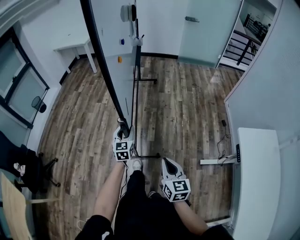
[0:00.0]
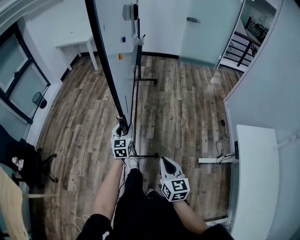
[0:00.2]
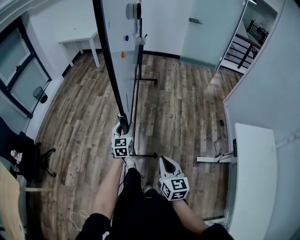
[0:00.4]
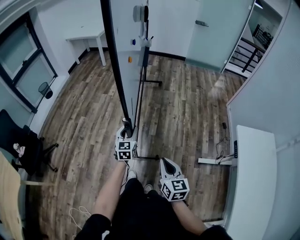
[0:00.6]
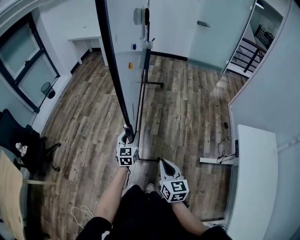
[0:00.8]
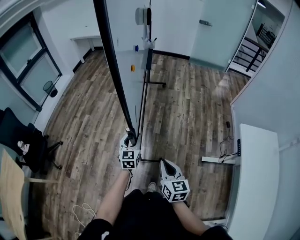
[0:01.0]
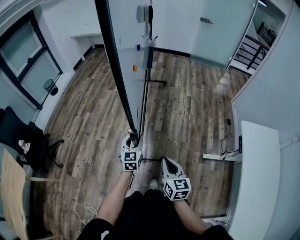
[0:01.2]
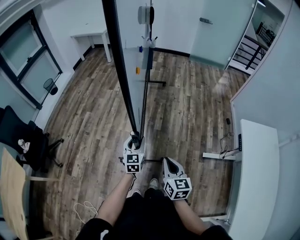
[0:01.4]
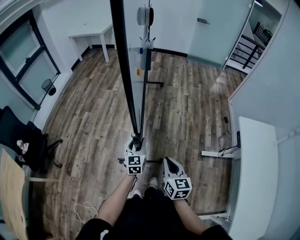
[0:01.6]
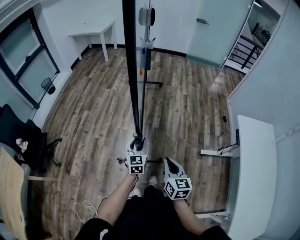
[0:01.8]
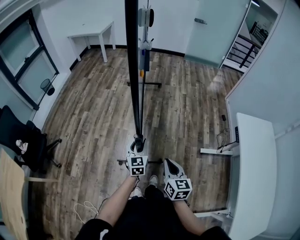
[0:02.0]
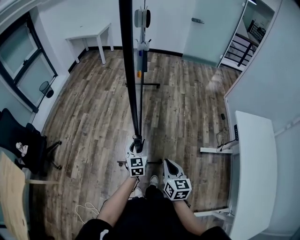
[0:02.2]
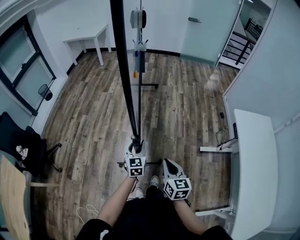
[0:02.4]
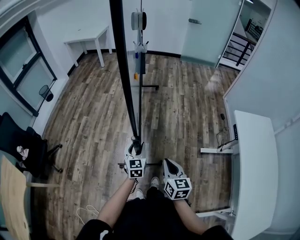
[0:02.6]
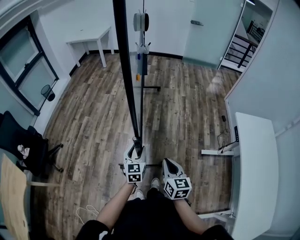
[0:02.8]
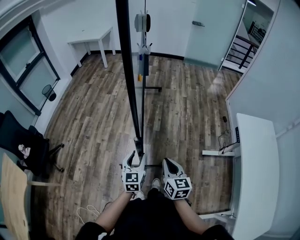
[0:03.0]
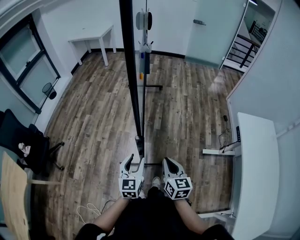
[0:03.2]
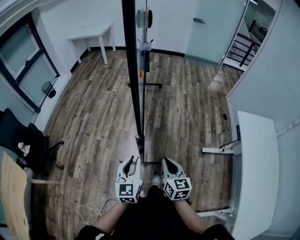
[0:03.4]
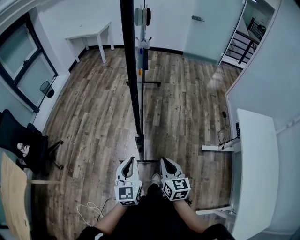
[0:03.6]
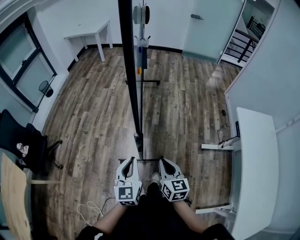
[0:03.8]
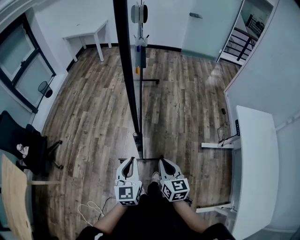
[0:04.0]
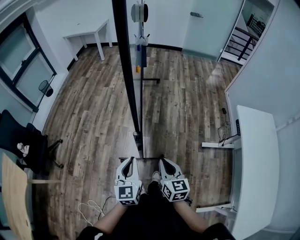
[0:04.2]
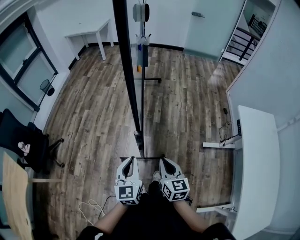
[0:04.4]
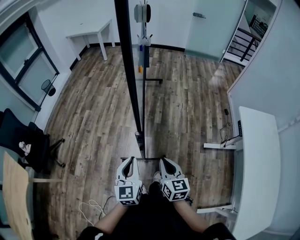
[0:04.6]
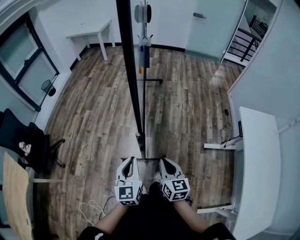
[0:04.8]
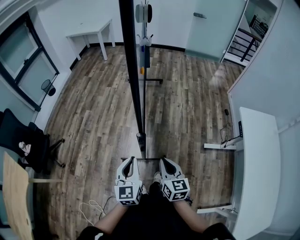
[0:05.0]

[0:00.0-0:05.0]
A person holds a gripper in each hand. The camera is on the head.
0:00.0 to 0:01.6: The left gripper heads backward, covering roughly 25 cm. Meanwhile the right gripper travels backward and to the left by some 20 cm.
0:01.6 to 0:03.4: The right gripper shifts by some 5 cm. The left gripper goes approximately 20 cm backward and upward.
0:03.4 to 0:05.0: The left gripper closes up.

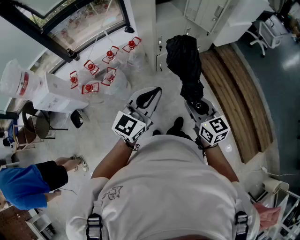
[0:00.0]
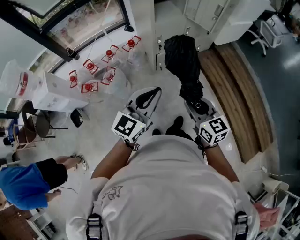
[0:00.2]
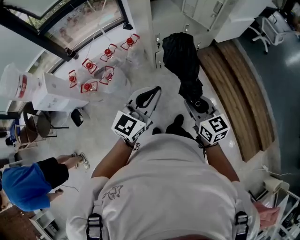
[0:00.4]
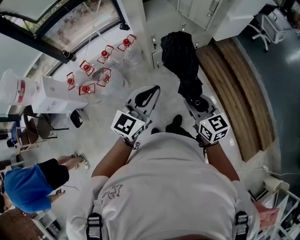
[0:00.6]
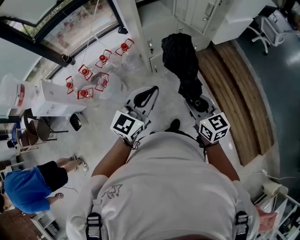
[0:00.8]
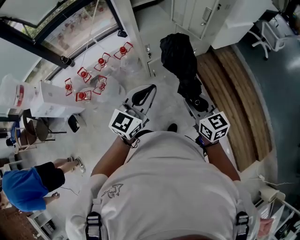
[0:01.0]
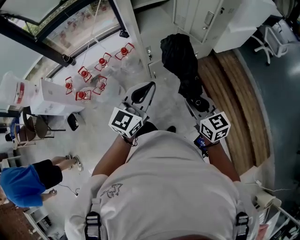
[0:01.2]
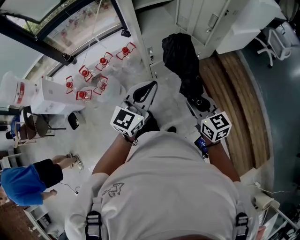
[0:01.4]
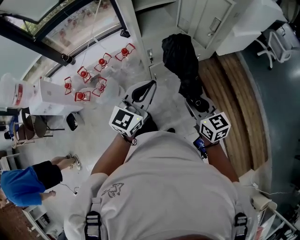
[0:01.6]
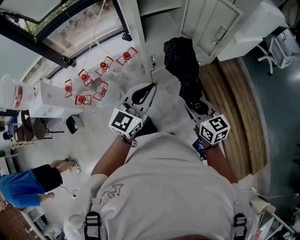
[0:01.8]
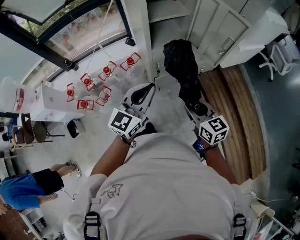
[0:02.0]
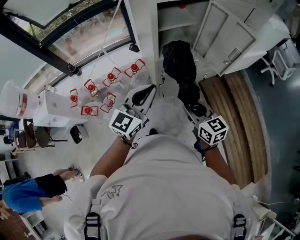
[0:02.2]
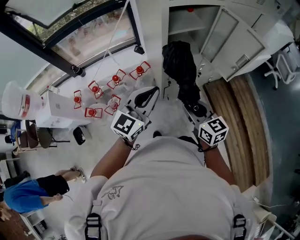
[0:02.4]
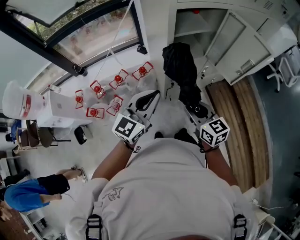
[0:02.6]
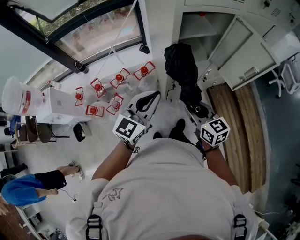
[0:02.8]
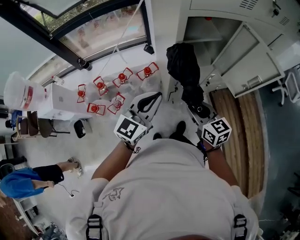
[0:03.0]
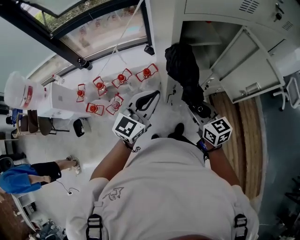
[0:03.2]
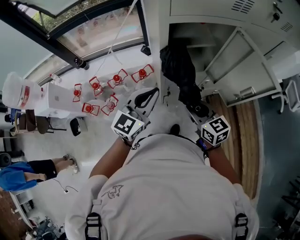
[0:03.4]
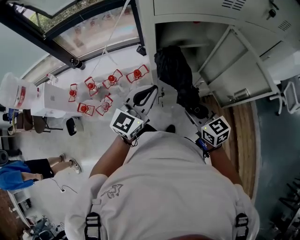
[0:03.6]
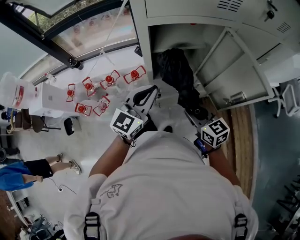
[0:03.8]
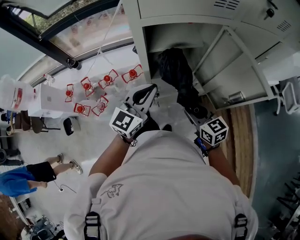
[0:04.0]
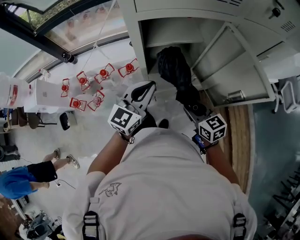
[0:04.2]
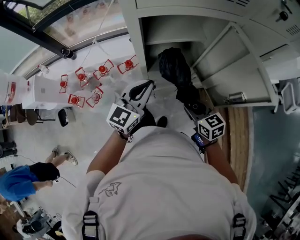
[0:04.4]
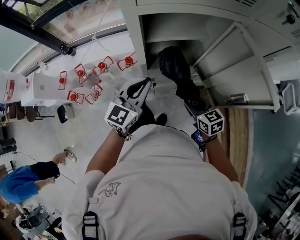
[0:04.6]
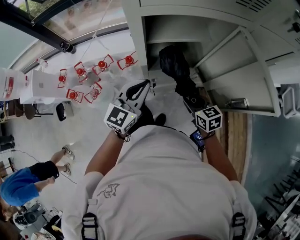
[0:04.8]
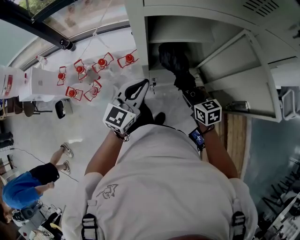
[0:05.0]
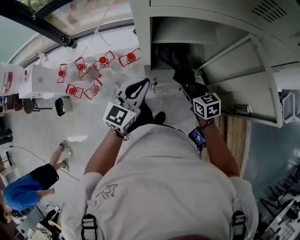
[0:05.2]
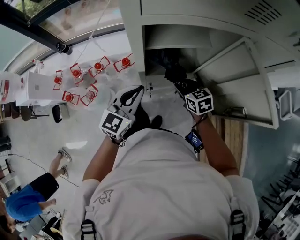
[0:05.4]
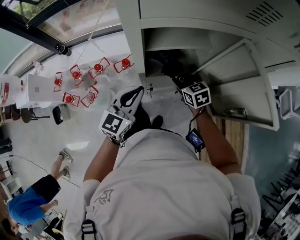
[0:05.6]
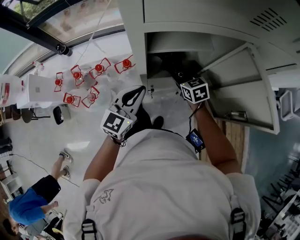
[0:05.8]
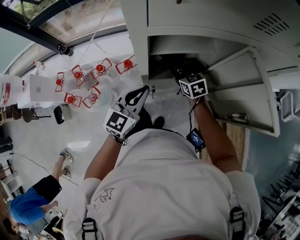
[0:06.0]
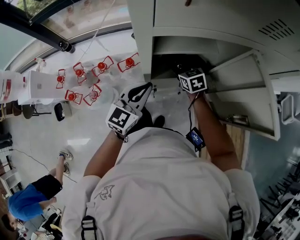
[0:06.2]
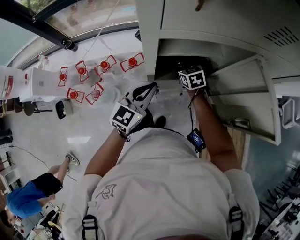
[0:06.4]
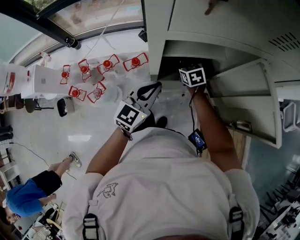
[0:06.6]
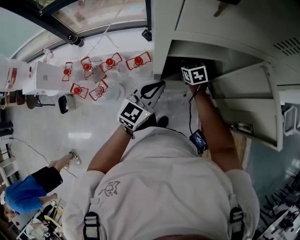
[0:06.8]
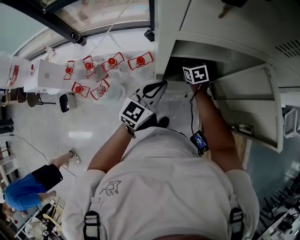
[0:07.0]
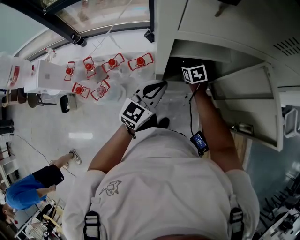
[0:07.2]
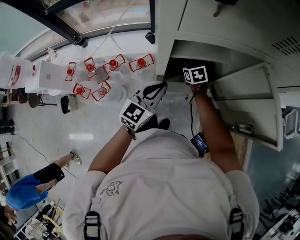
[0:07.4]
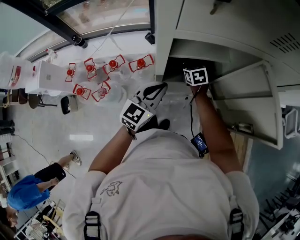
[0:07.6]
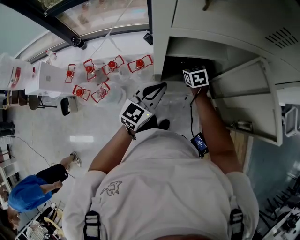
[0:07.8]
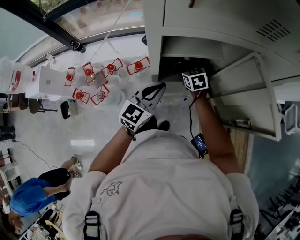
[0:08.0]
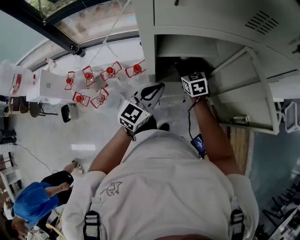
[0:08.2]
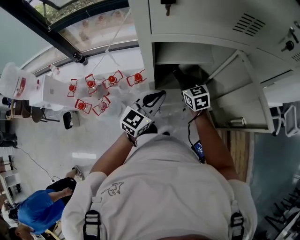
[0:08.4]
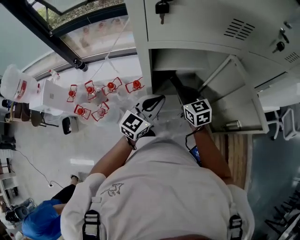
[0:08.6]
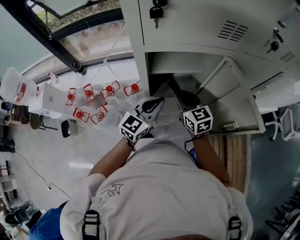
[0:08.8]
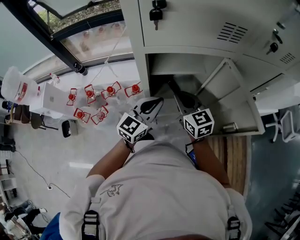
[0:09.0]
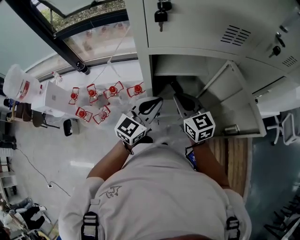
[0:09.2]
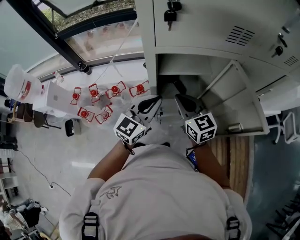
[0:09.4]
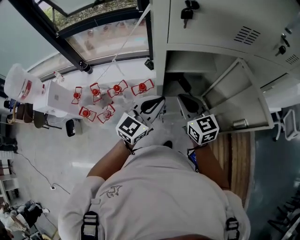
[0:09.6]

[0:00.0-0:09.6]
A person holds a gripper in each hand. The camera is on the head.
0:00.0 to 0:01.6: The grippers both shift forward and to the right by roughly 25 cm.
0:01.6 to 0:03.2: The two grippers go about 25 cm forward and to the left.
0:03.2 to 0:04.8: The left gripper shifts about 15 cm to the right, forward and downward. The right gripper is displaced to the right, downward and forward by some 20 cm.
0:04.8 to 0:06.4: The right gripper moves forward, approximately 25 cm, while the left gripper heads forward, covering some 5 cm.
0:06.4 to 0:08.0: The grippers make only small movements.
0:08.0 to 0:09.6: The left gripper moves upward, approximately 10 cm. The right gripper travels upward and backward by roughly 25 cm, swivels approximately 30 degrees, and closes up.

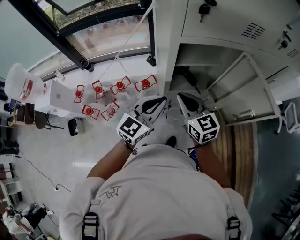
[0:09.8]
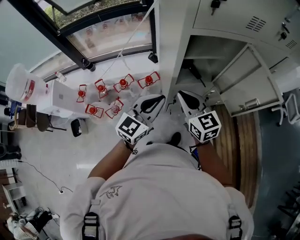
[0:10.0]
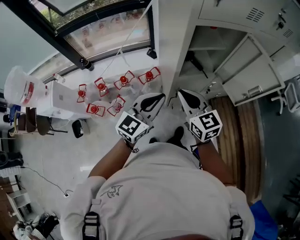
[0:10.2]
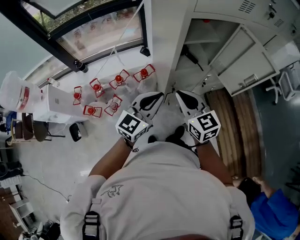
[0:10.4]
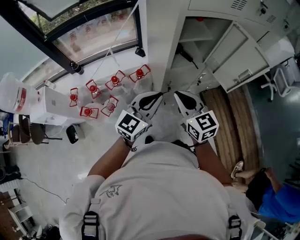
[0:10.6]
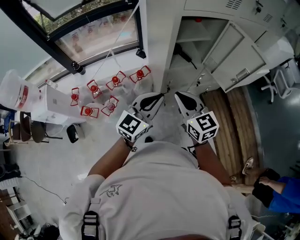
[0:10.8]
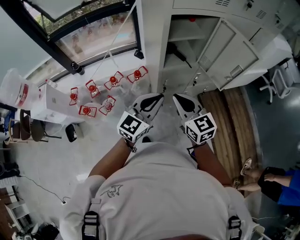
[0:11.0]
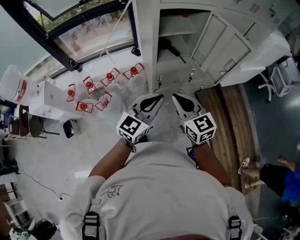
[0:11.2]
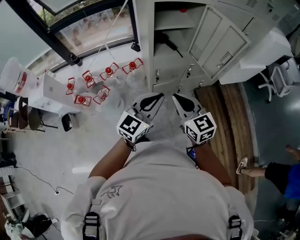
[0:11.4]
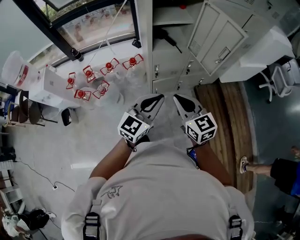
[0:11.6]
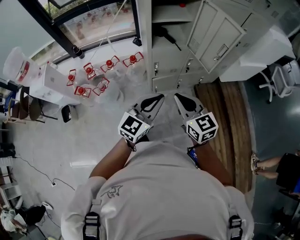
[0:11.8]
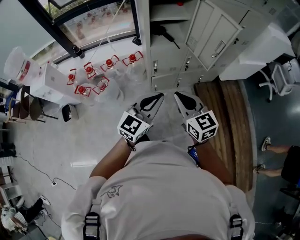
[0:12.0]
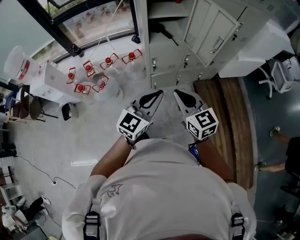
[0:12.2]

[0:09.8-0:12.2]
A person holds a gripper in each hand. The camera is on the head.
0:09.8 to 0:11.0: Both grippers travel together backward, approximately 20 cm.
0:11.0 to 0:12.2: Both grippers move backward and to the right, approximately 20 cm.

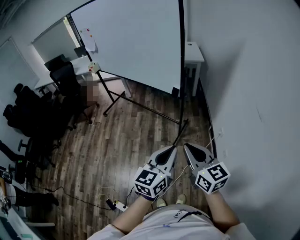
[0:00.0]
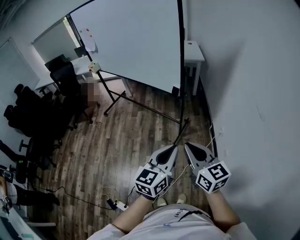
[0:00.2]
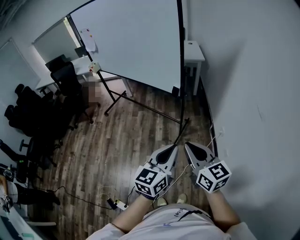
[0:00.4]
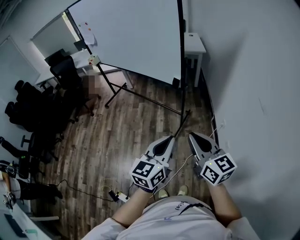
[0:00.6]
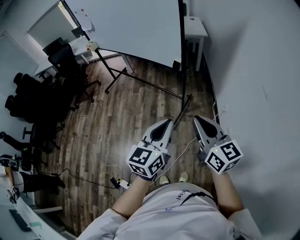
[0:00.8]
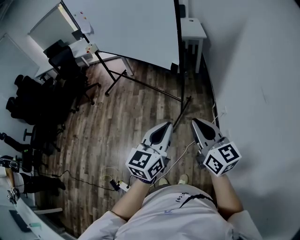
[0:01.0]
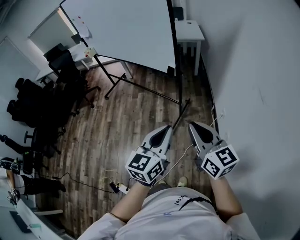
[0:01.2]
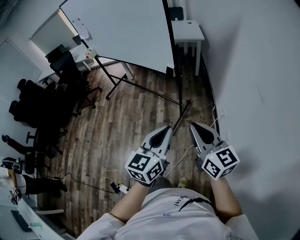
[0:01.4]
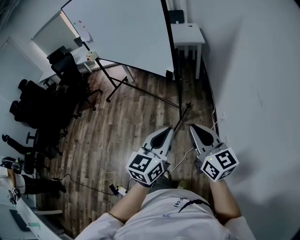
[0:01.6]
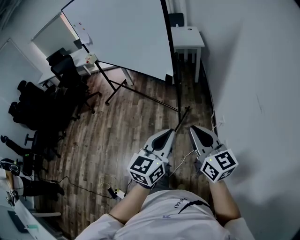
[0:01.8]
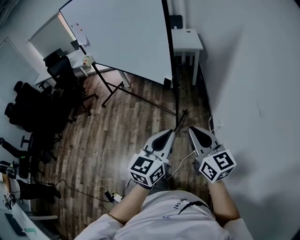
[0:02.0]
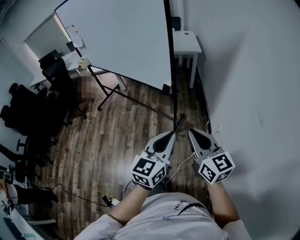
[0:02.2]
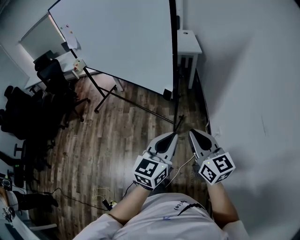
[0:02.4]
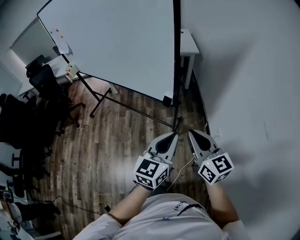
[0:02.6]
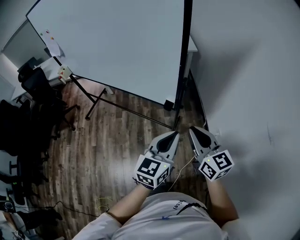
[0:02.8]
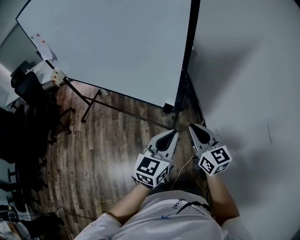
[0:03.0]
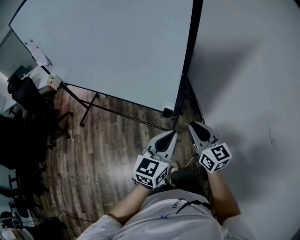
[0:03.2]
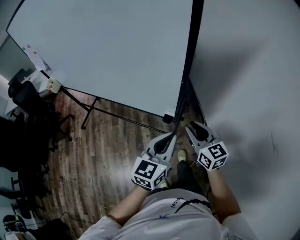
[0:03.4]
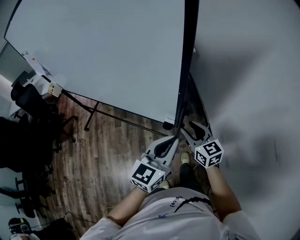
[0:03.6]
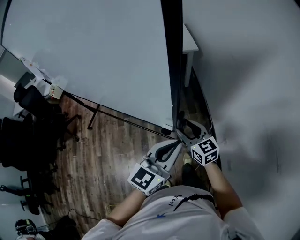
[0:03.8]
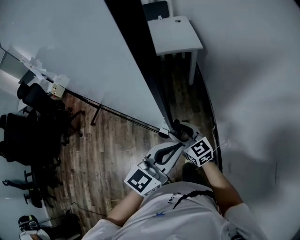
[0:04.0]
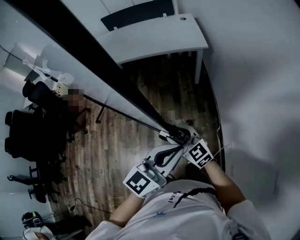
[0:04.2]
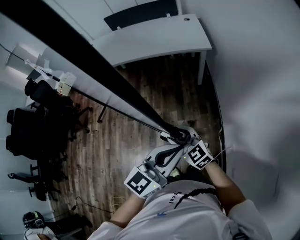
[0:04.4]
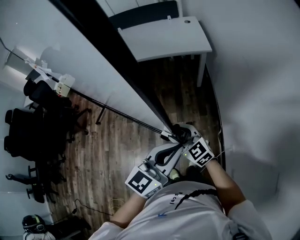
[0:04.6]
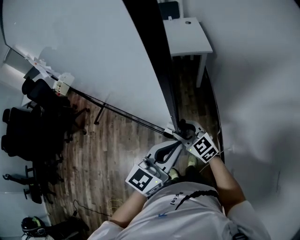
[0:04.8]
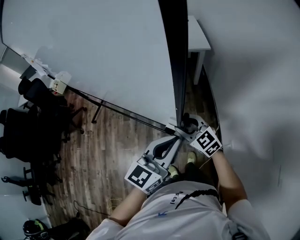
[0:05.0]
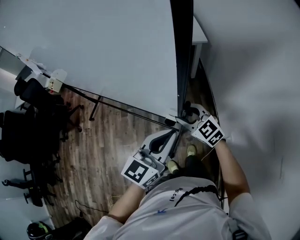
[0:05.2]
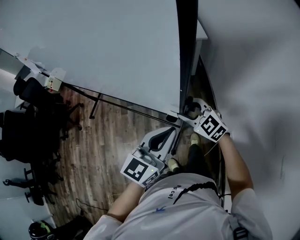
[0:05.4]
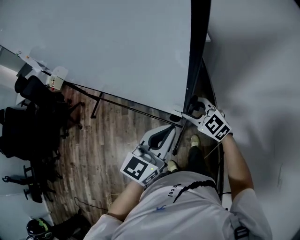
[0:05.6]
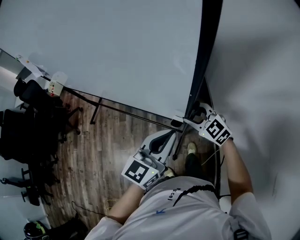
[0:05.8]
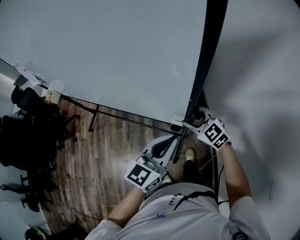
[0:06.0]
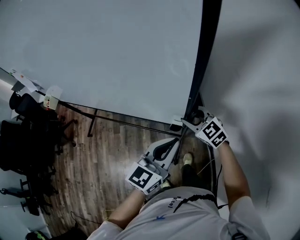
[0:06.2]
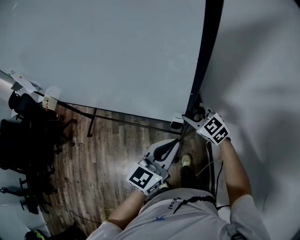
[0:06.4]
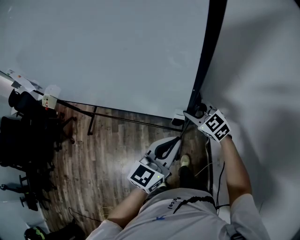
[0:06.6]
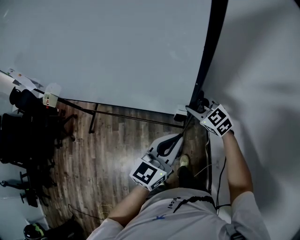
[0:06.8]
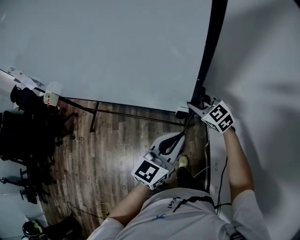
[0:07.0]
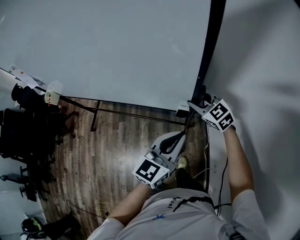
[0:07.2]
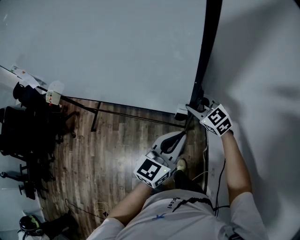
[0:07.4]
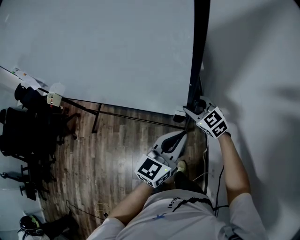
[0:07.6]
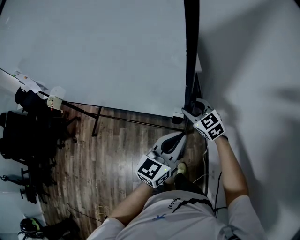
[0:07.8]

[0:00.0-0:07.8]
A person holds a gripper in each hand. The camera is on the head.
0:00.0 to 0:01.6: The grippers both shift to the right by approximately 10 cm.
0:01.6 to 0:03.2: Both grippers travel together forward, approximately 35 cm.
0:03.2 to 0:04.6: The right gripper heads forward and downward, covering roughly 20 cm, changes its angle by some 40 degrees, and opens. The left gripper is displaced forward and to the right by about 15 cm.
0:04.6 to 0:06.2: The left gripper shifts approximately 10 cm forward, and moves about 5 cm to the left and comes back. Meanwhile the right gripper moves forward and to the right, some 20 cm.
0:06.2 to 0:07.8: Both grippers travel together forward and to the right, some 15 cm.
